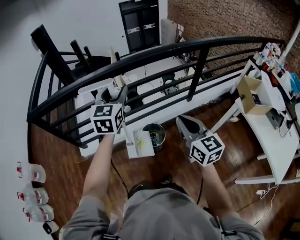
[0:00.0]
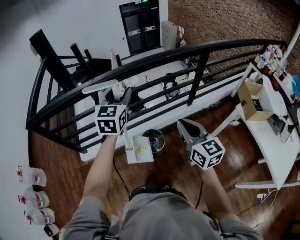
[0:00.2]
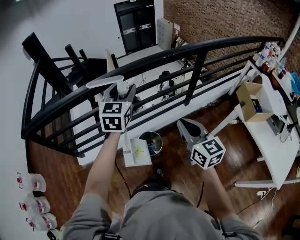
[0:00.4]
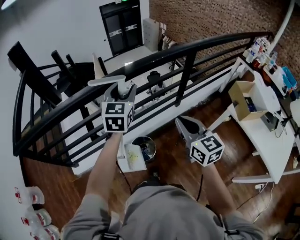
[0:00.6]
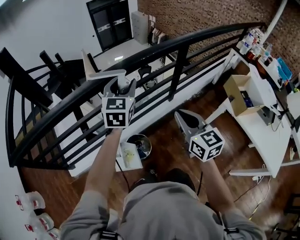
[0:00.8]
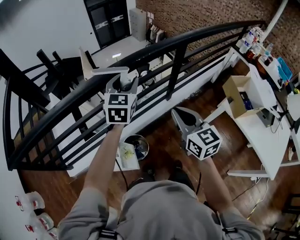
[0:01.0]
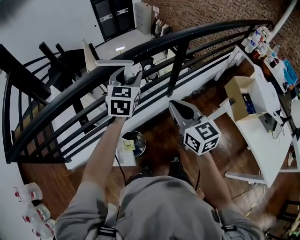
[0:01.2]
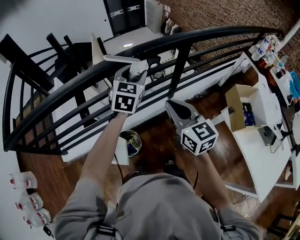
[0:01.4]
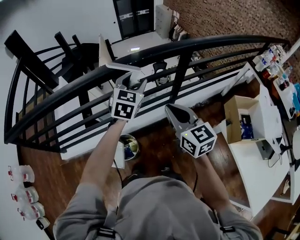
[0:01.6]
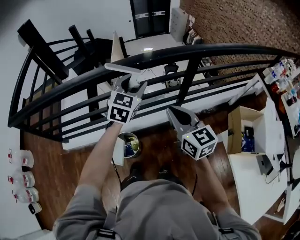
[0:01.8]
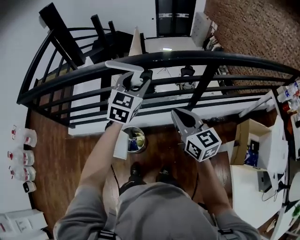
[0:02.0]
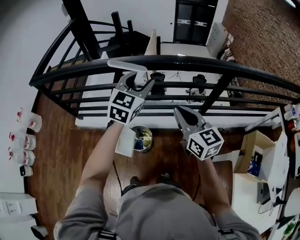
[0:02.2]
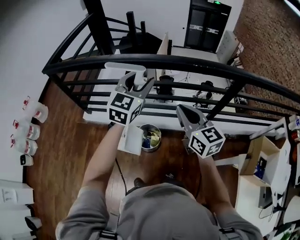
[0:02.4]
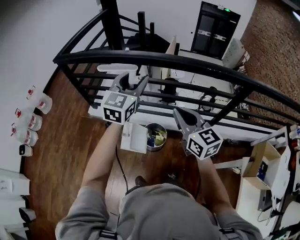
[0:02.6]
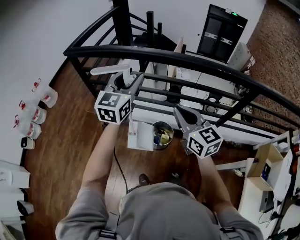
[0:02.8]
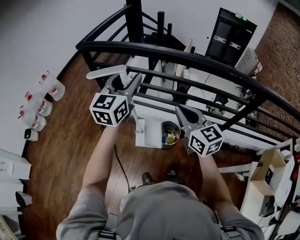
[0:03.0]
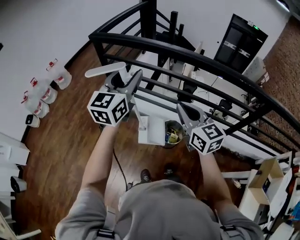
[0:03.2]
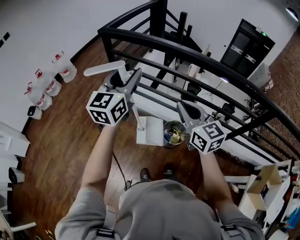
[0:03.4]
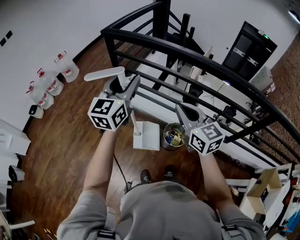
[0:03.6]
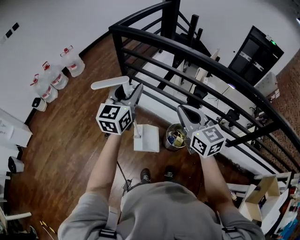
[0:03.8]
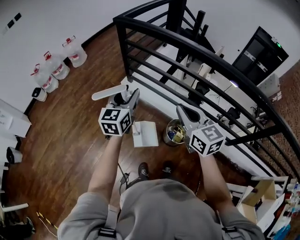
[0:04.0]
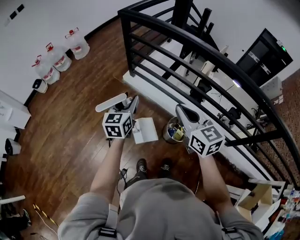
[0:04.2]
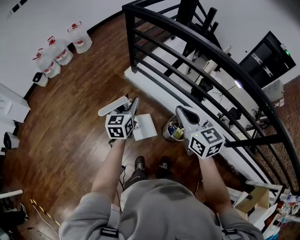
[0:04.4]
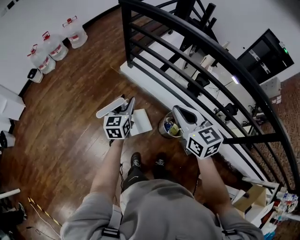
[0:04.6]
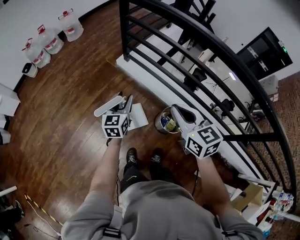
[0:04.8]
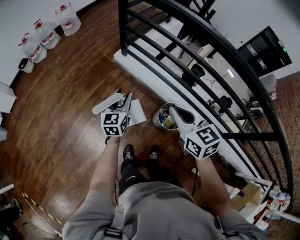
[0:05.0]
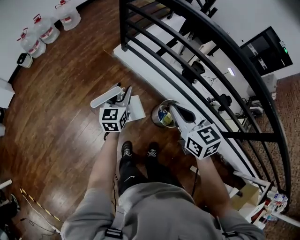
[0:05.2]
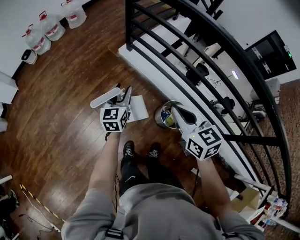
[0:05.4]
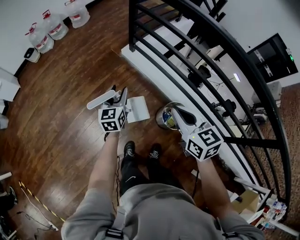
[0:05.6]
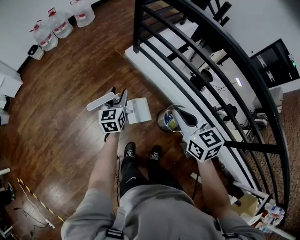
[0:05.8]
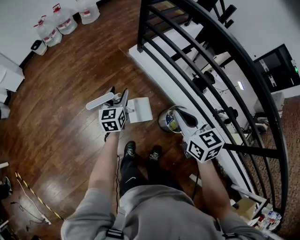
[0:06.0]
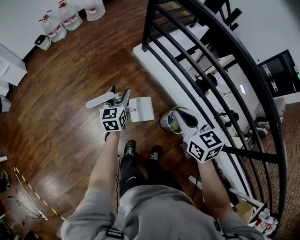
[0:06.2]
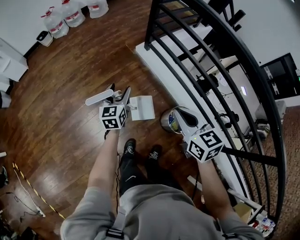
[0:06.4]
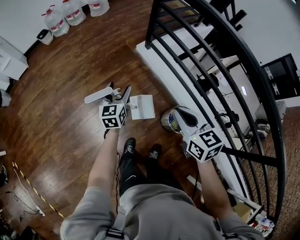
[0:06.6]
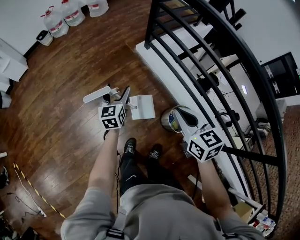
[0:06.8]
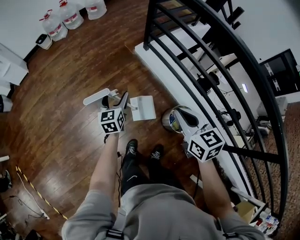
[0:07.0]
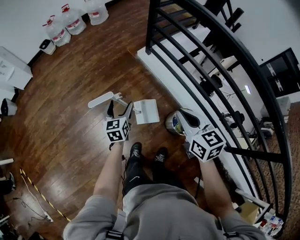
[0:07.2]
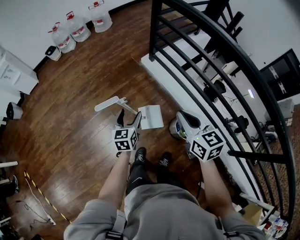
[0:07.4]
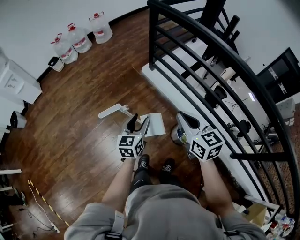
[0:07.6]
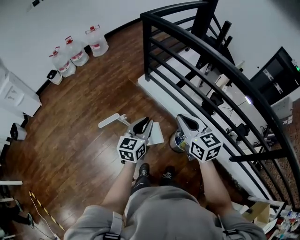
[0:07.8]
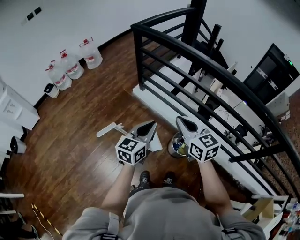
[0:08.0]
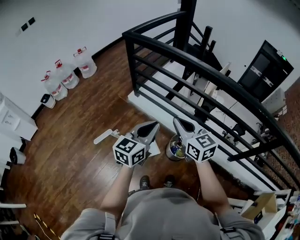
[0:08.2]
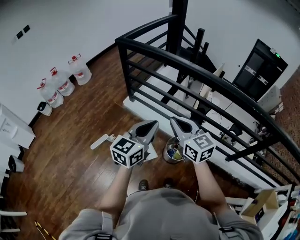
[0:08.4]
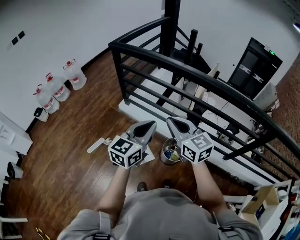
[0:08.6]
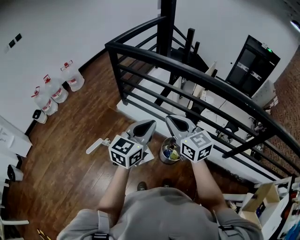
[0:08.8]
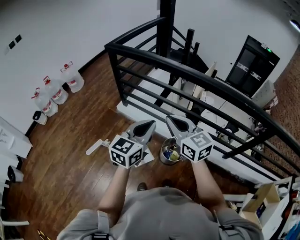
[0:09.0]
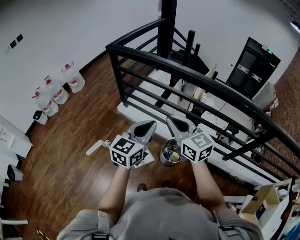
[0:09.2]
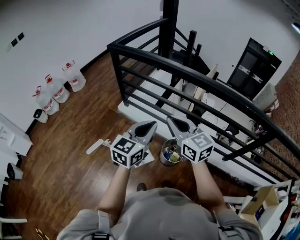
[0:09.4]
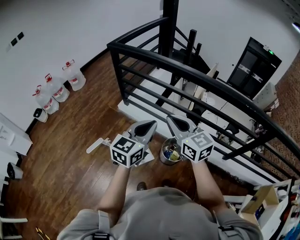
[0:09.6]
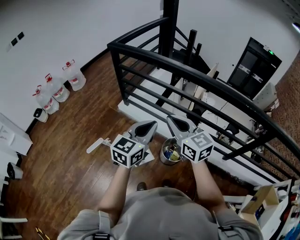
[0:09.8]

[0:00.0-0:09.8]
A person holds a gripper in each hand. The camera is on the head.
0.0 to 1.4 s: The right gripper travels forward and to the right by about 30 cm, while the left gripper goes about 40 cm to the right and forward.
1.4 to 2.8 s: The left gripper ends up some 40 cm from where it was, and swivels some 40 degrees, while the right gripper changes place by about 25 cm, and turns by roughly 40 degrees.
2.8 to 4.2 s: The right gripper changes place by roughly 20 cm, and changes its angle by roughly 20 degrees; the left gripper ends up roughly 30 cm from where it was, and rotates approximately 40 degrees.
4.2 to 5.6 s: Both grippers move downward, about 10 cm.
5.6 to 7.0 s: The left gripper heads to the left, covering approximately 10 cm, and opens.
7.0 to 8.4 s: The right gripper heads upward, covering about 15 cm, and swivels some 20 degrees, while the left gripper shifts roughly 30 cm upward, changes its angle by about 50 degrees, and closes up.
8.4 to 9.8 s: The grippers stay close to where they were, moving slightly.

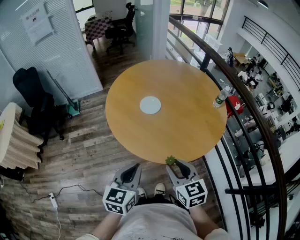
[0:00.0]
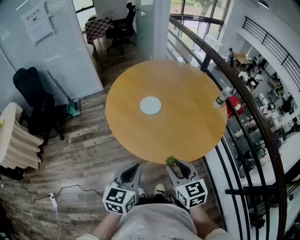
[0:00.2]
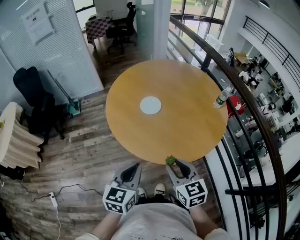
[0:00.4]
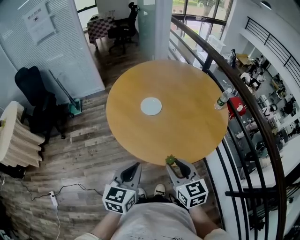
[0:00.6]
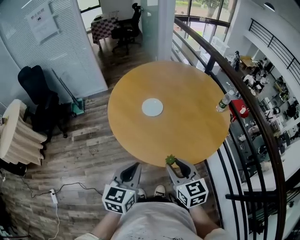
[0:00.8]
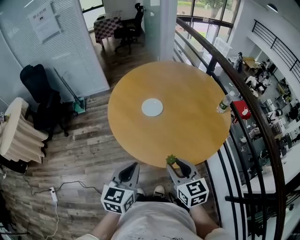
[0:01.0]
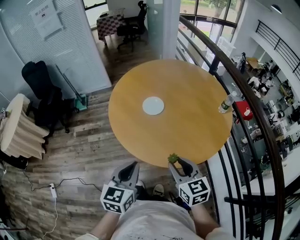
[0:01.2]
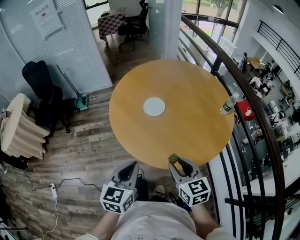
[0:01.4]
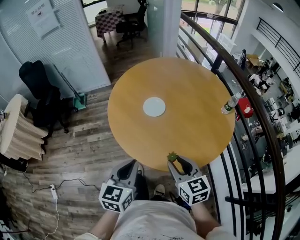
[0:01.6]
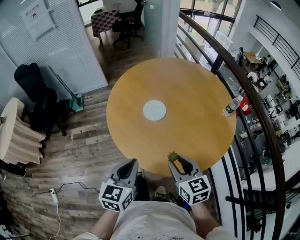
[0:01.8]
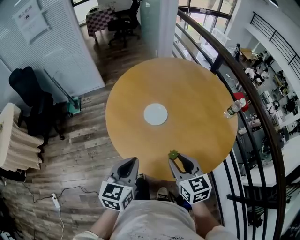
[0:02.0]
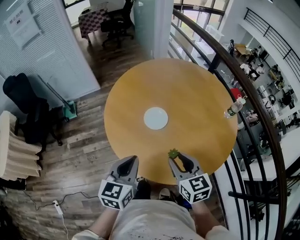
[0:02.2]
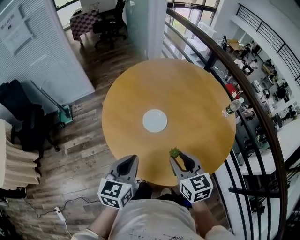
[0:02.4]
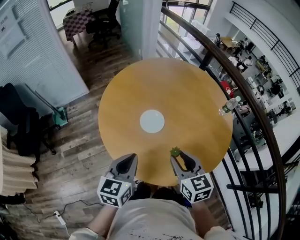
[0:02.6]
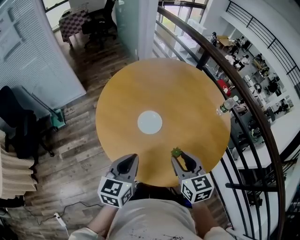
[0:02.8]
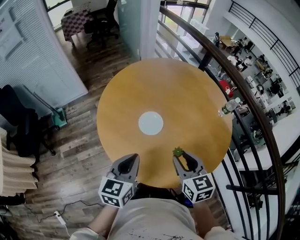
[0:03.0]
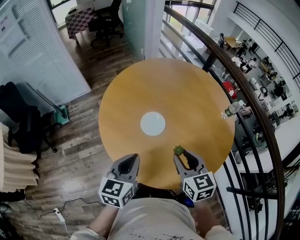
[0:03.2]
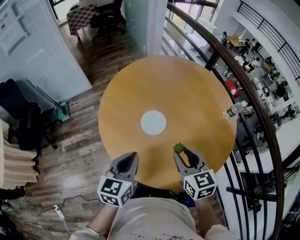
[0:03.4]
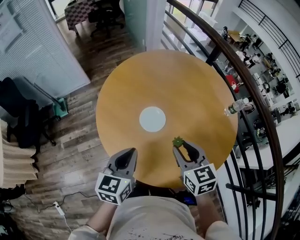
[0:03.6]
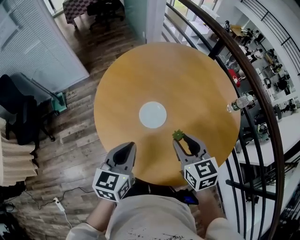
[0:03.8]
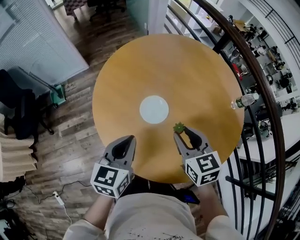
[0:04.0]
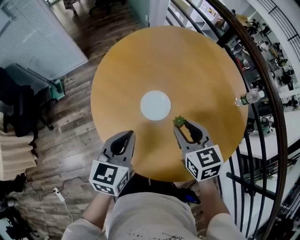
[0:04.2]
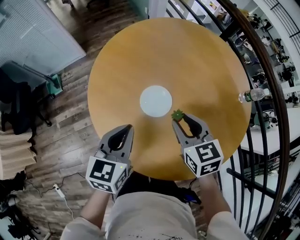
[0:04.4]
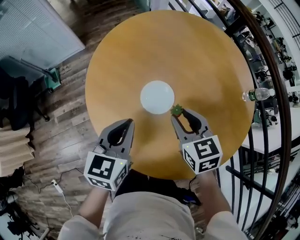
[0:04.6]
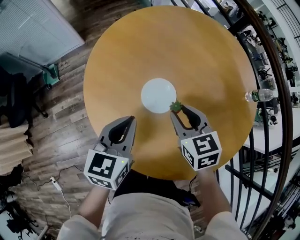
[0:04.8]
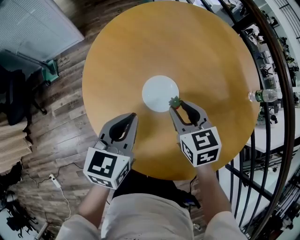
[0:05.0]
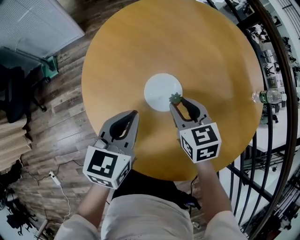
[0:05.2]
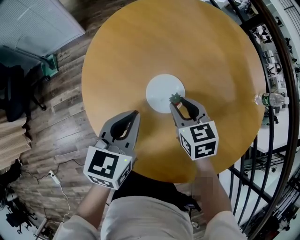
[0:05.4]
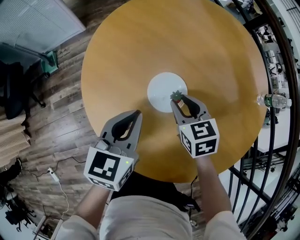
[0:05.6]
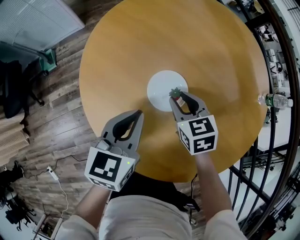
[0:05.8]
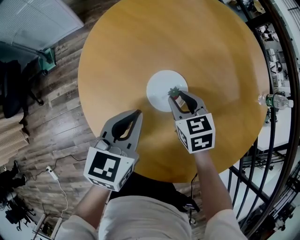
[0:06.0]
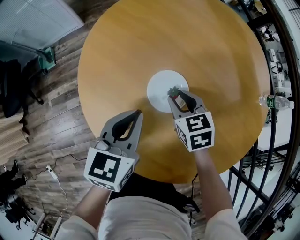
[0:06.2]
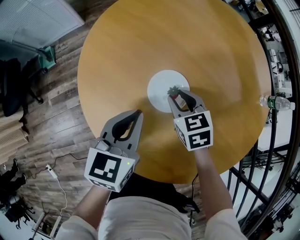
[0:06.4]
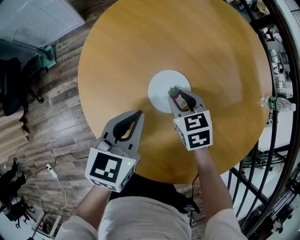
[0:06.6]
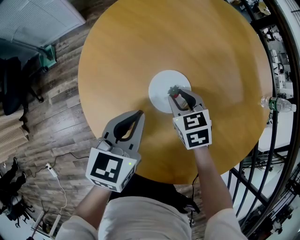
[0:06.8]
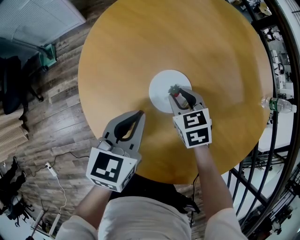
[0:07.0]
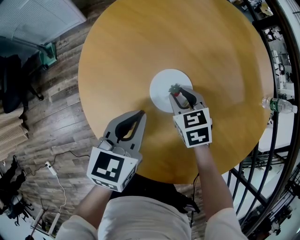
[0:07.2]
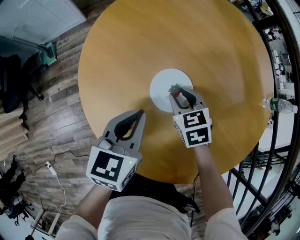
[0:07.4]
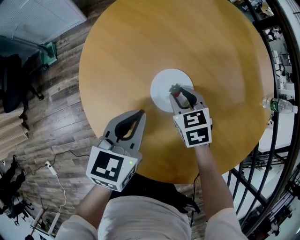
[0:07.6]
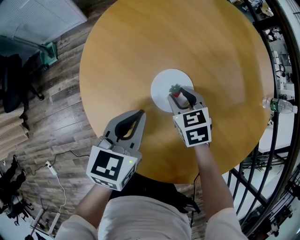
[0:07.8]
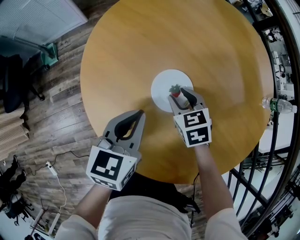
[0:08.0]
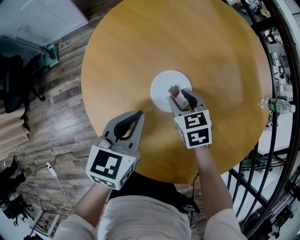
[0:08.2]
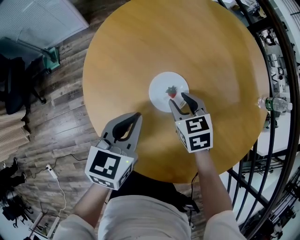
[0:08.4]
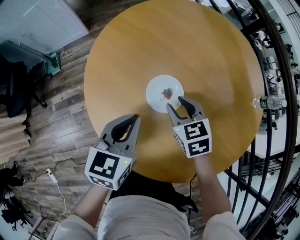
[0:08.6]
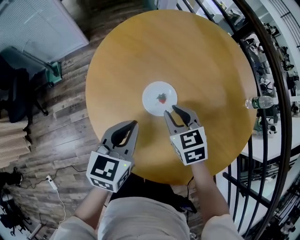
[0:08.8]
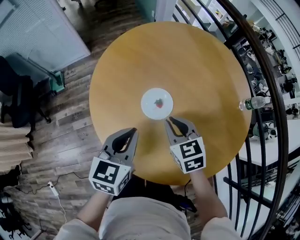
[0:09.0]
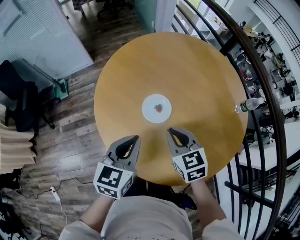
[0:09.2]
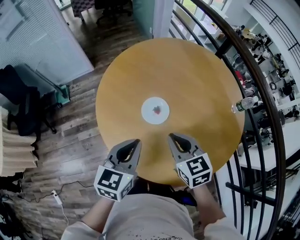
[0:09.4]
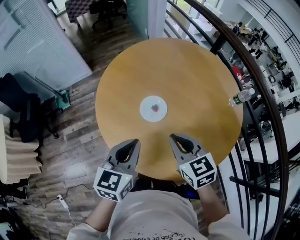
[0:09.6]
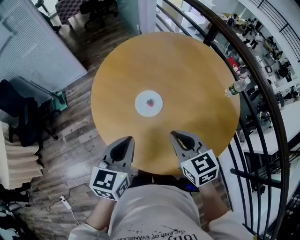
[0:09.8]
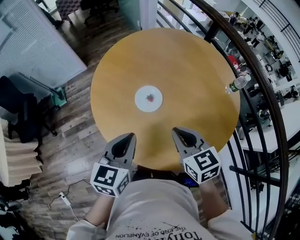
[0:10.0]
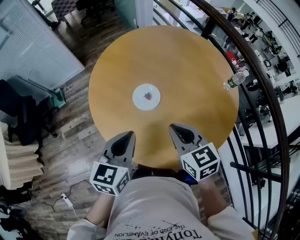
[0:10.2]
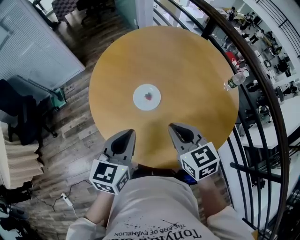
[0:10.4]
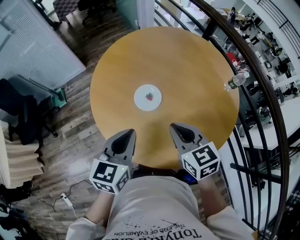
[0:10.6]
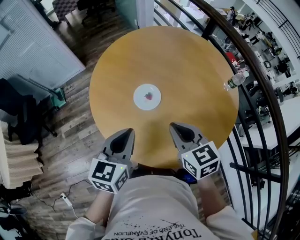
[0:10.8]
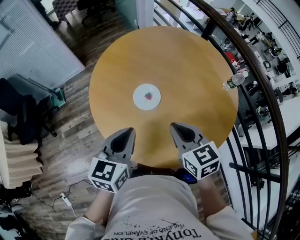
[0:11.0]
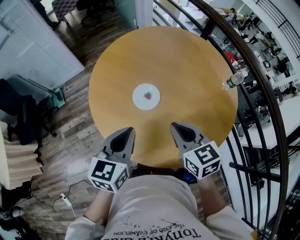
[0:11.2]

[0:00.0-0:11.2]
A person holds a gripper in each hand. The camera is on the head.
0.0 to 1.6 s: The right gripper heads forward, covering some 5 cm.
1.6 to 3.2 s: The right gripper shifts approximately 15 cm forward. Meanwhile the left gripper shifts about 20 cm forward and to the left.
3.2 to 4.8 s: The two grippers go about 15 cm downward and forward.
4.8 to 6.4 s: The right gripper shifts some 15 cm downward, forward and to the left. The left gripper changes place by approximately 5 cm.
6.4 to 8.0 s: The grippers make only small movements.
8.0 to 9.6 s: The left gripper shifts some 15 cm upward and backward. The right gripper is displaced upward and backward by about 25 cm, swivels about 20 degrees, and closes up.
9.6 to 11.2 s: The grippers move only a little.

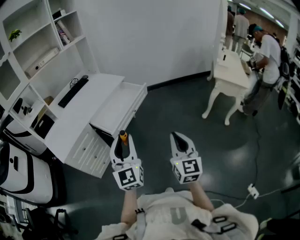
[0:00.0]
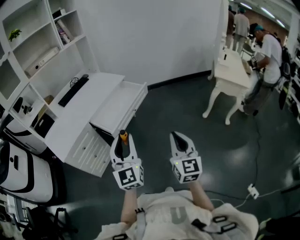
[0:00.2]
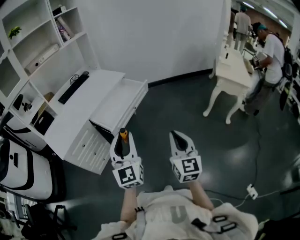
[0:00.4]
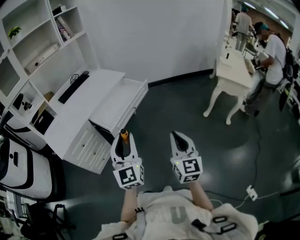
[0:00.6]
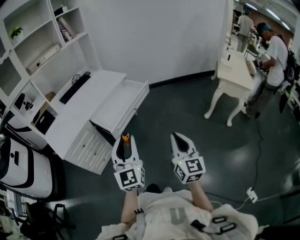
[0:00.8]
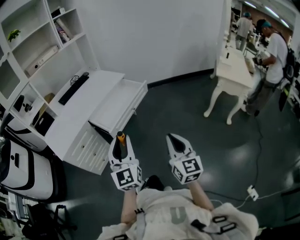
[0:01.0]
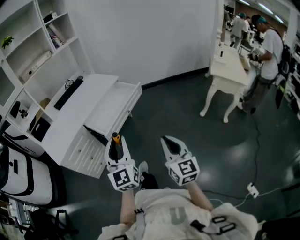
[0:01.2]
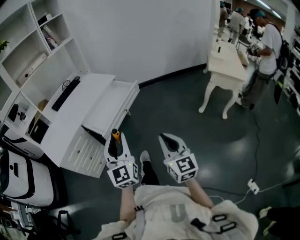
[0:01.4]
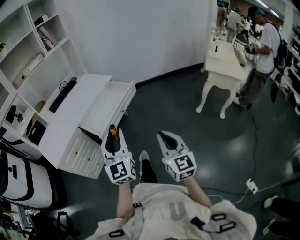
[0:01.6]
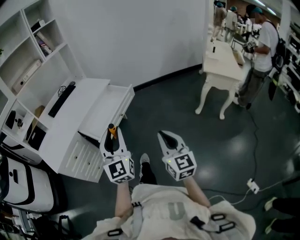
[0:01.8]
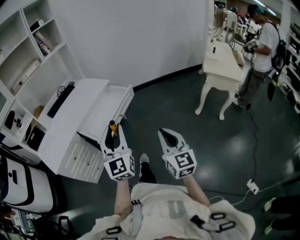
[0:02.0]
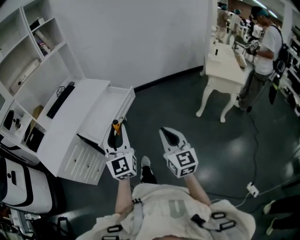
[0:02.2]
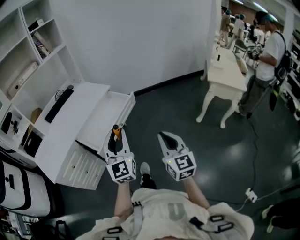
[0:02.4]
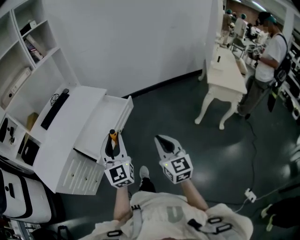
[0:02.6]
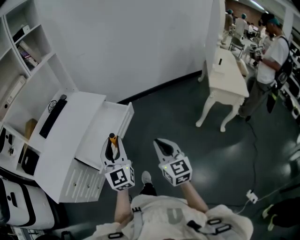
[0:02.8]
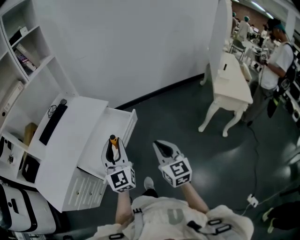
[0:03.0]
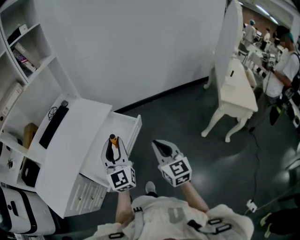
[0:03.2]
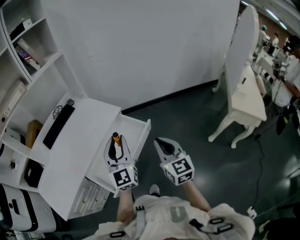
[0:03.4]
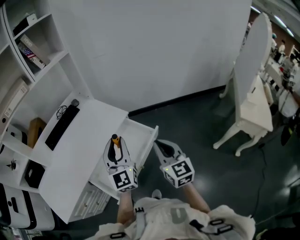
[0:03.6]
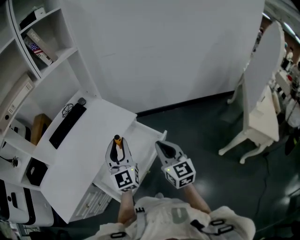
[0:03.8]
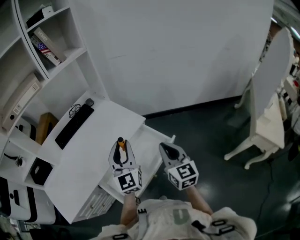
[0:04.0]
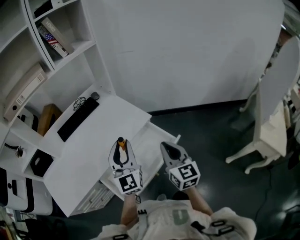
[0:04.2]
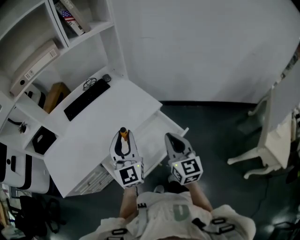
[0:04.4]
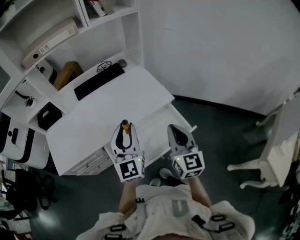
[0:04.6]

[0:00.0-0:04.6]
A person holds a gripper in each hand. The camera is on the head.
0.0 to 1.6 s: The left gripper heads to the right and forward, covering approximately 10 cm.
1.6 to 3.0 s: The grippers both shift forward by roughly 30 cm.
3.0 to 4.6 s: The right gripper ends up some 35 cm from where it was, and changes its angle by approximately 30 degrees; the left gripper changes place by some 25 cm, and turns by approximately 30 degrees.
